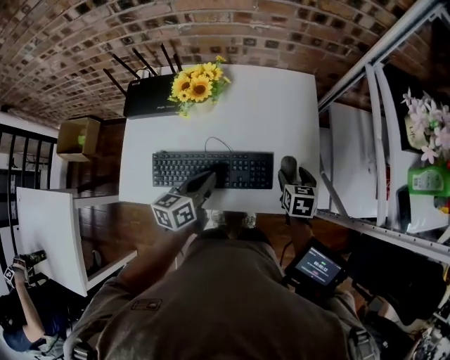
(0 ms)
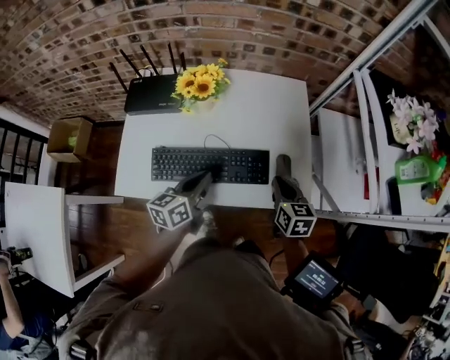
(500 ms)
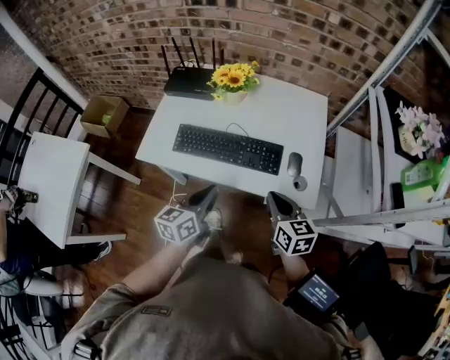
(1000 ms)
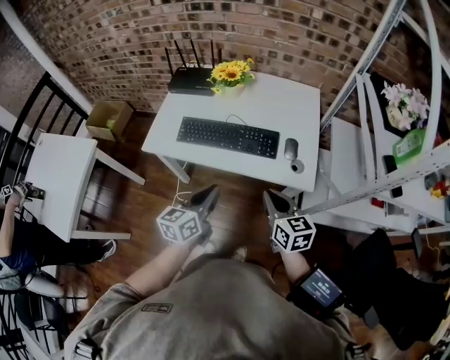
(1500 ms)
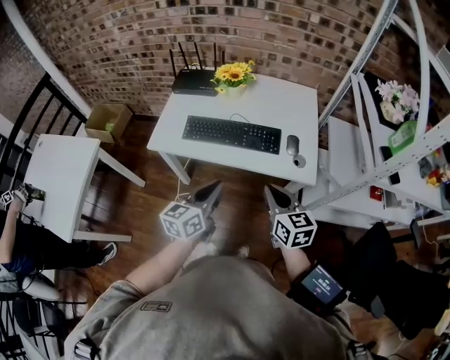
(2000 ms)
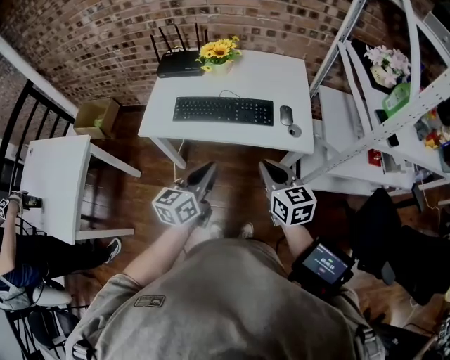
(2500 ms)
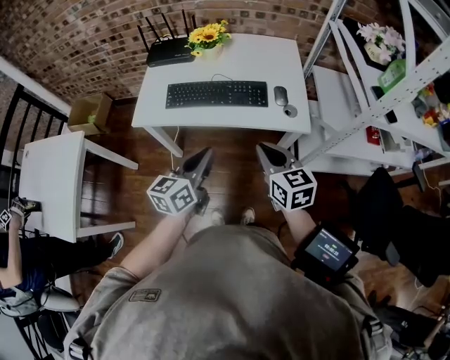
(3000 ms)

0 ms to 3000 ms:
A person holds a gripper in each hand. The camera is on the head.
0 ms to 1500 ms: The left gripper moves backward, roughly 25 cm. The right gripper heads backward and upward, covering roughly 30 cm, turns by approximately 40 degrees, and closes up.
1500 ms to 3000 ms: The left gripper moves some 5 cm. The right gripper goes some 5 cm backward.

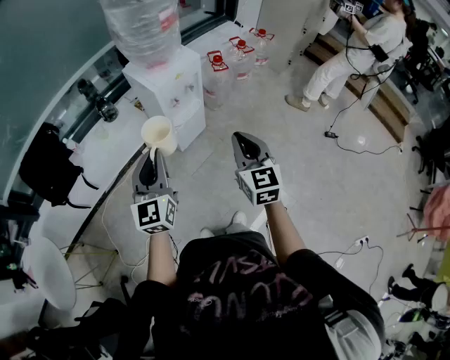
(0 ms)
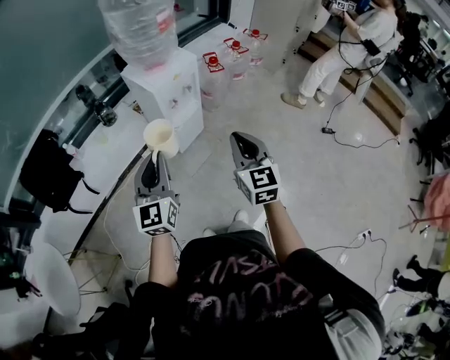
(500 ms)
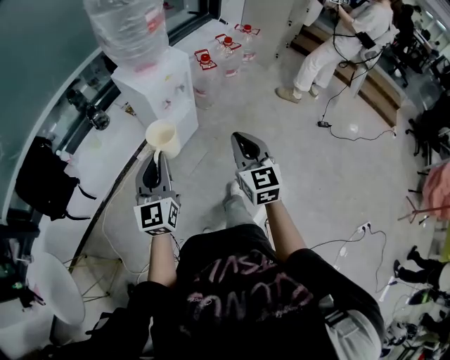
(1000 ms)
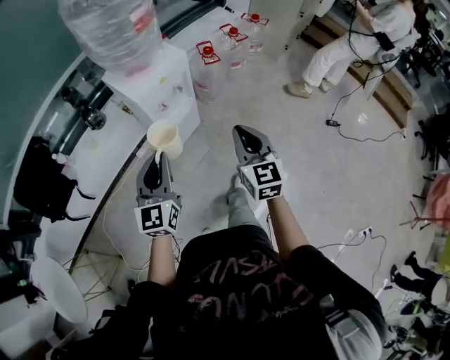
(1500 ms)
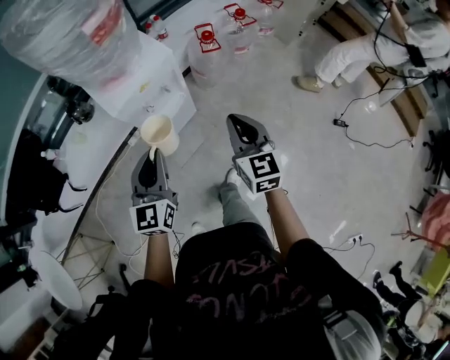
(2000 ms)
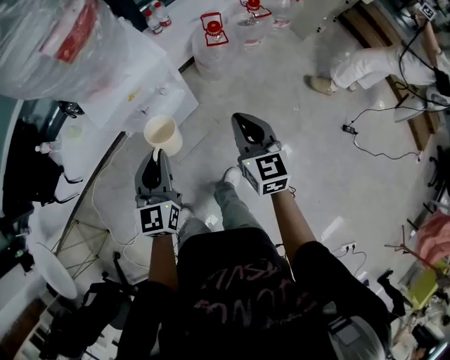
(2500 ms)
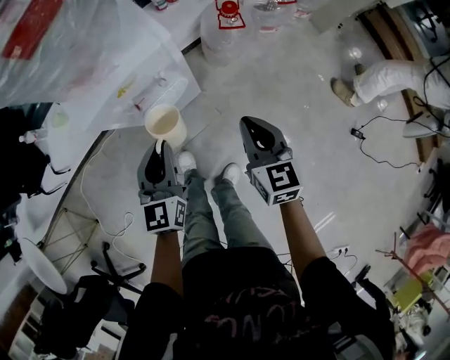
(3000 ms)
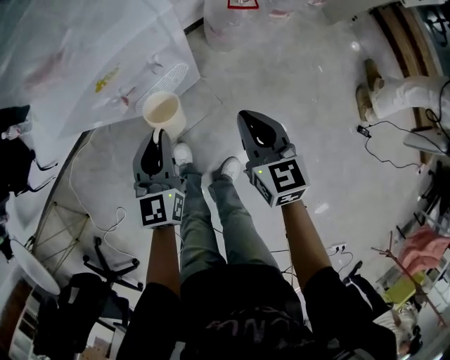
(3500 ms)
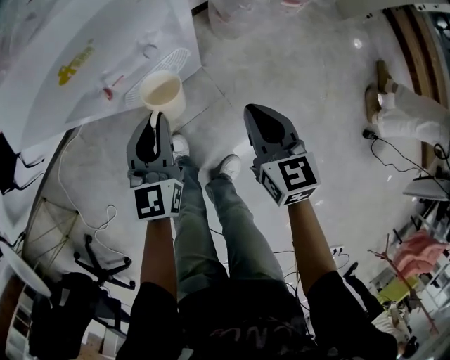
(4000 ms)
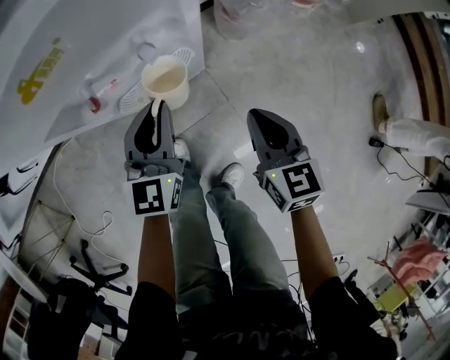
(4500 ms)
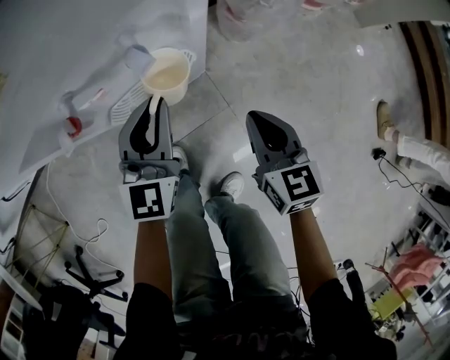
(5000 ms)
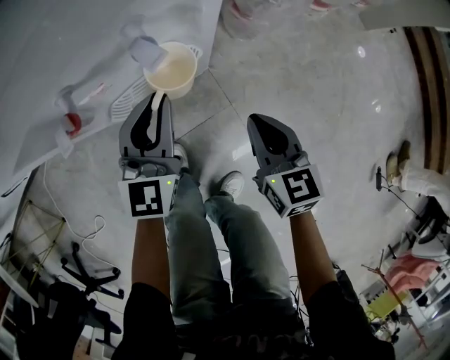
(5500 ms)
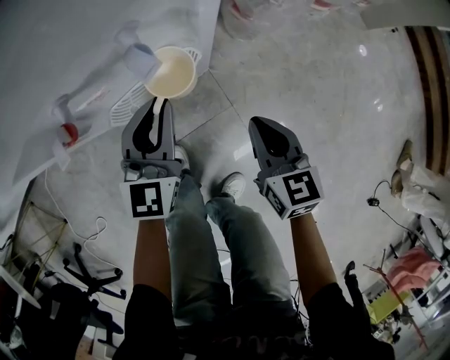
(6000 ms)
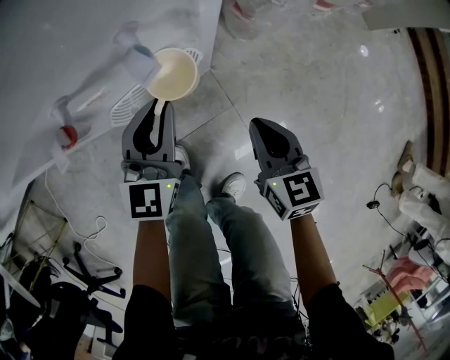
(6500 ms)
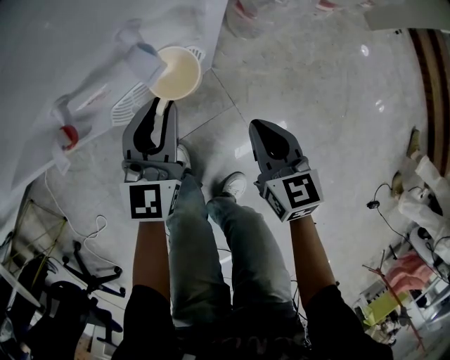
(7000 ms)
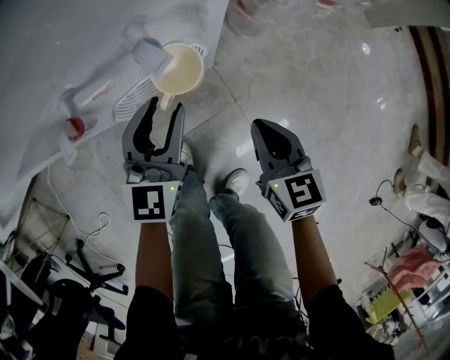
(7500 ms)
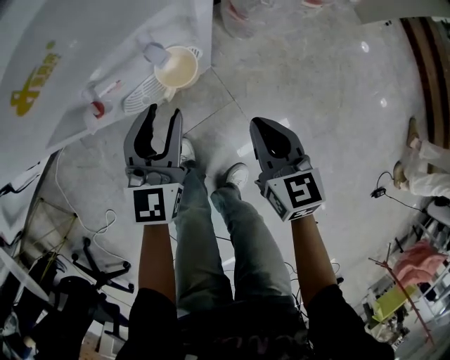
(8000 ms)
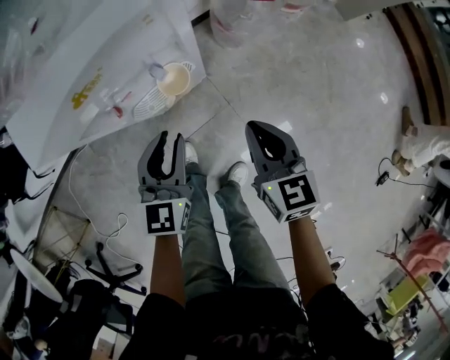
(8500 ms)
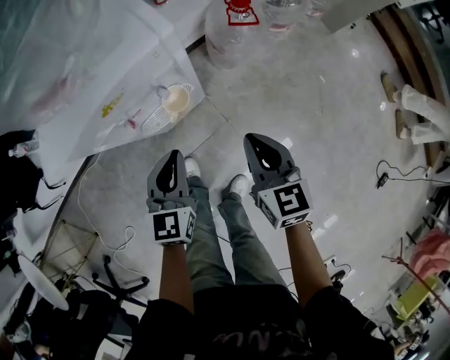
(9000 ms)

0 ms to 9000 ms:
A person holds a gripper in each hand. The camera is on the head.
0 ms to 2000 ms: The right gripper travels forward and to the right by some 30 cm. Meanwhile the left gripper goes some 25 cm forward, to the right and downward.
2000 ms to 4500 ms: The left gripper moves downward and forward, roughly 40 cm. The right gripper shifts about 40 cm downward, and rotates about 20 degrees.
4500 ms to 7000 ms: Both grippers travel together downward, approximately 10 cm.
7000 ms to 9000 ms: The left gripper is displaced upward and backward by approximately 20 cm, and opens, then closes again, while the right gripper travels upward by approximately 25 cm.

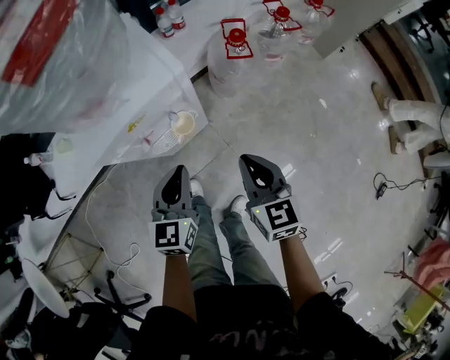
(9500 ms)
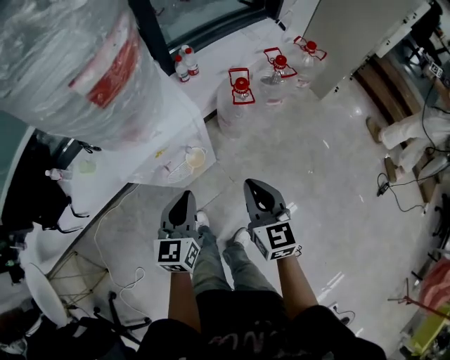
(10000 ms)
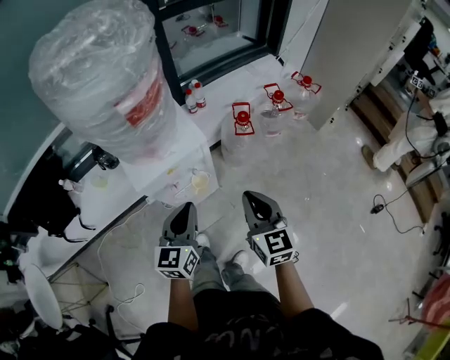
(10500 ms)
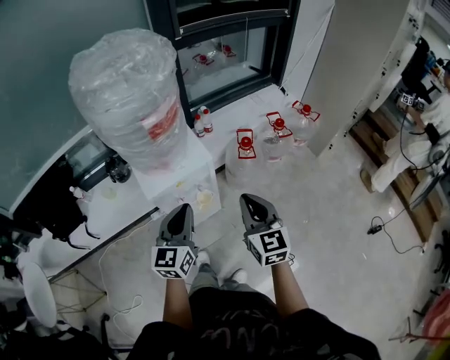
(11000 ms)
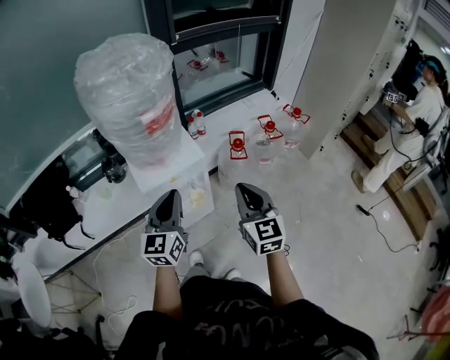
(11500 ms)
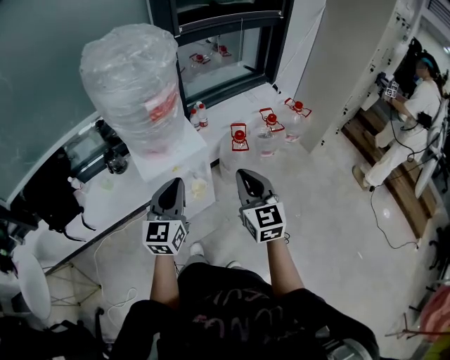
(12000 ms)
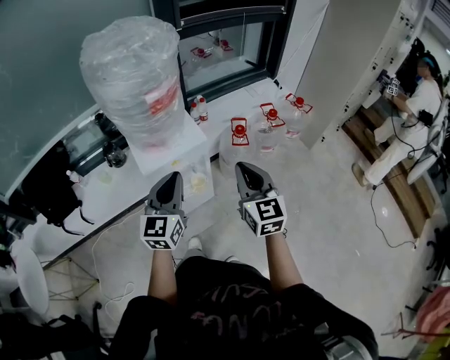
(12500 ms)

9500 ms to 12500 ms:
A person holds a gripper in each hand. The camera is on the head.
9500 ms to 11000 ms: The two grippers go some 25 cm upward.
11000 ms to 12500 ms: The left gripper ends up some 5 cm from where it was.

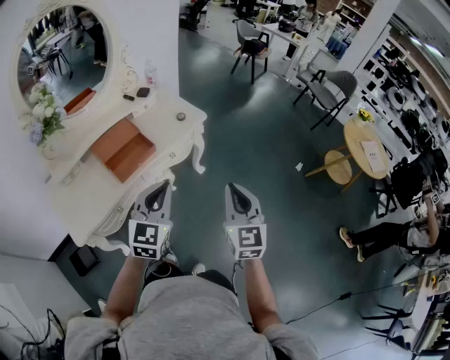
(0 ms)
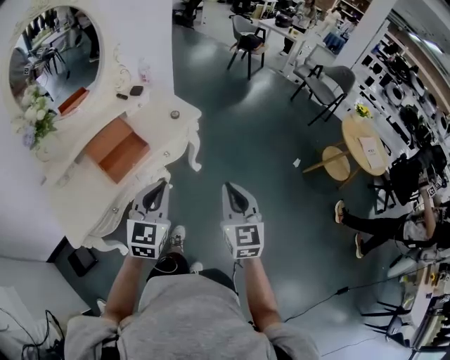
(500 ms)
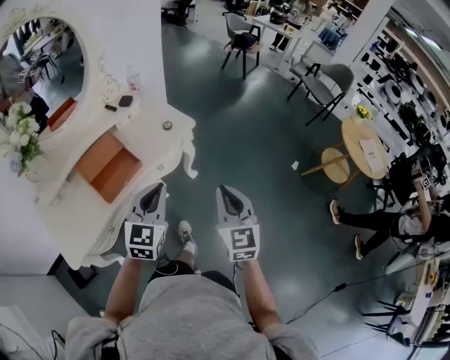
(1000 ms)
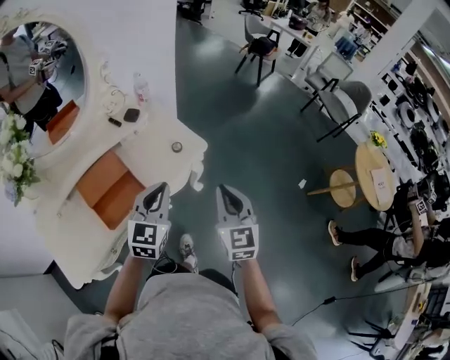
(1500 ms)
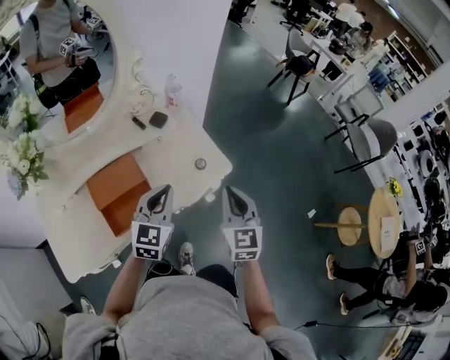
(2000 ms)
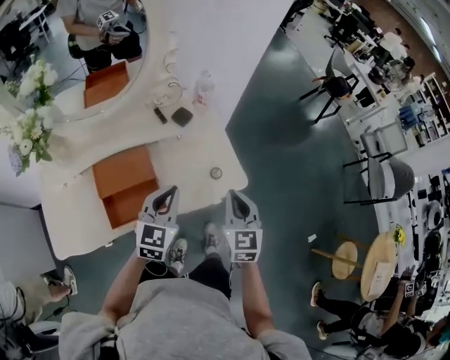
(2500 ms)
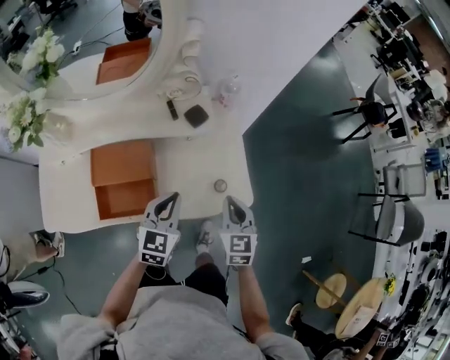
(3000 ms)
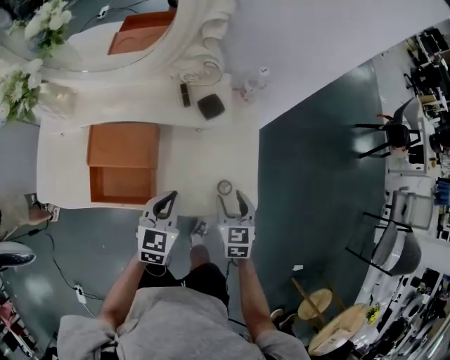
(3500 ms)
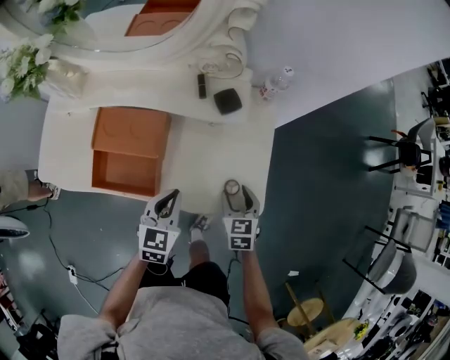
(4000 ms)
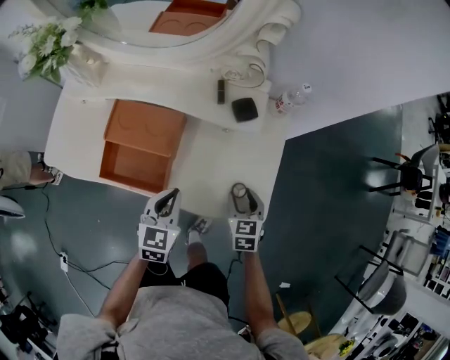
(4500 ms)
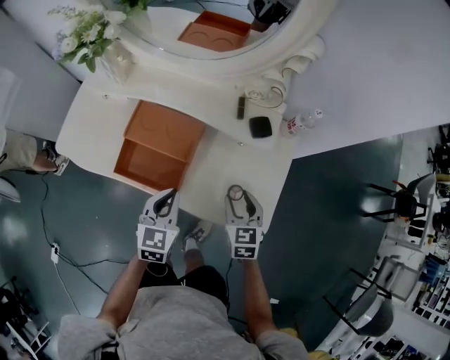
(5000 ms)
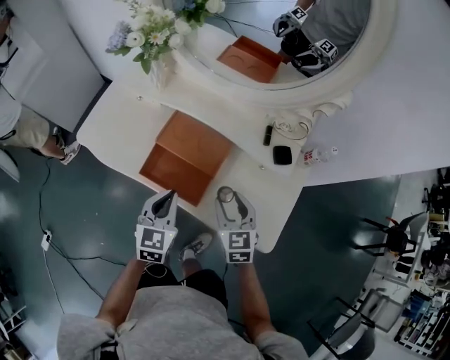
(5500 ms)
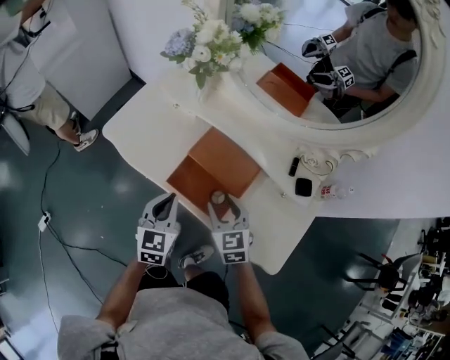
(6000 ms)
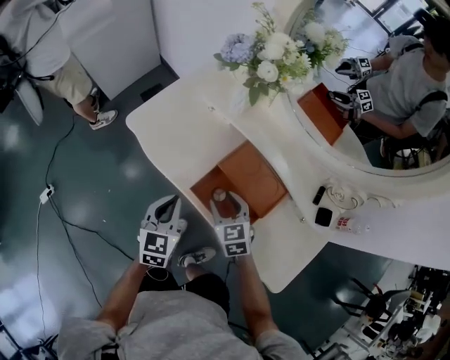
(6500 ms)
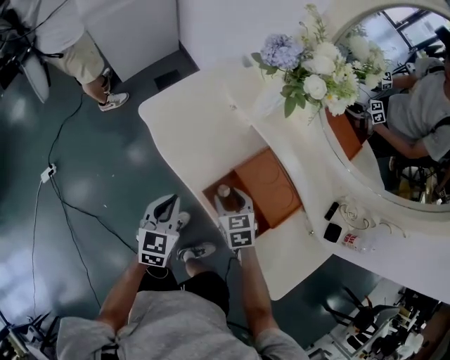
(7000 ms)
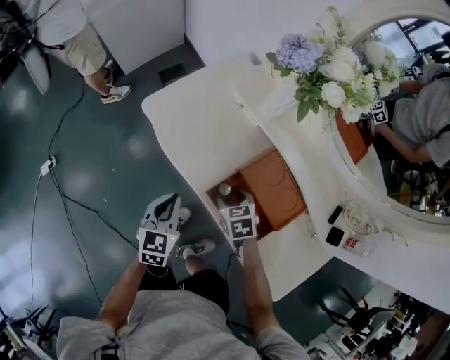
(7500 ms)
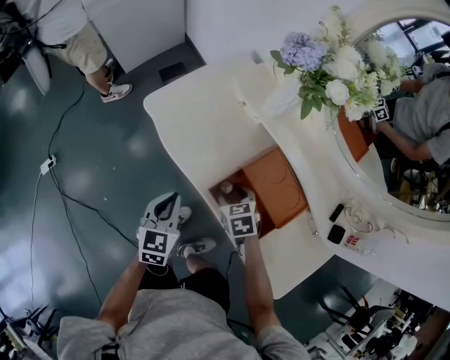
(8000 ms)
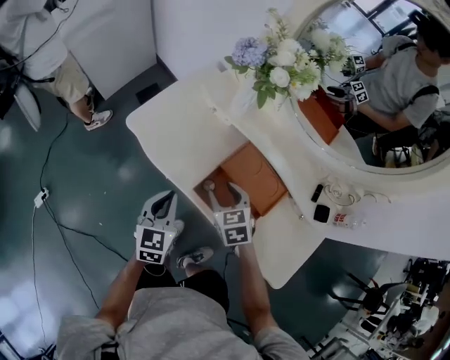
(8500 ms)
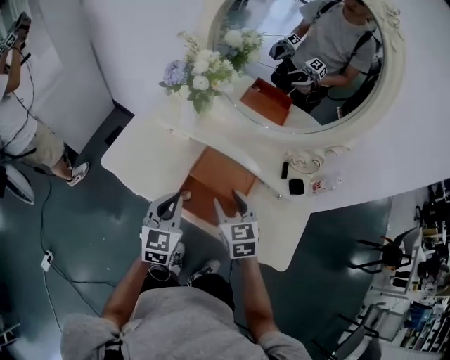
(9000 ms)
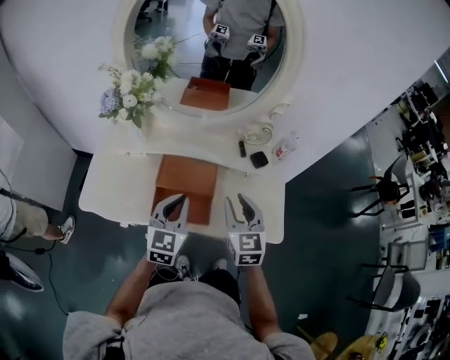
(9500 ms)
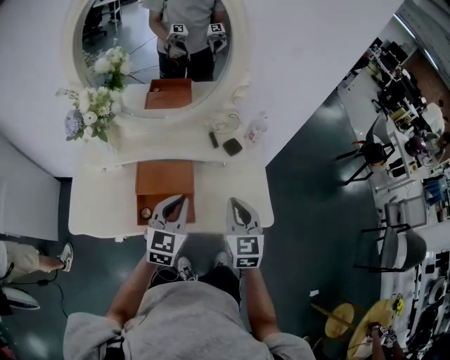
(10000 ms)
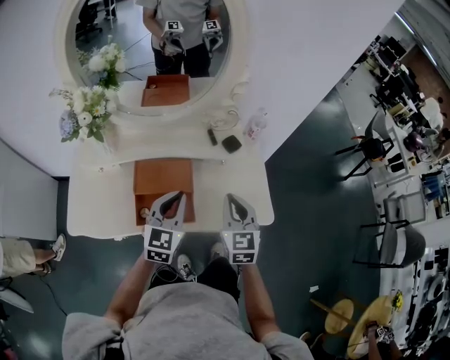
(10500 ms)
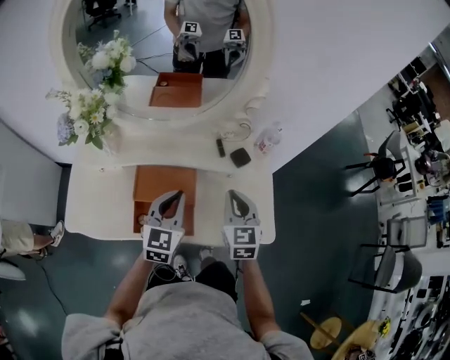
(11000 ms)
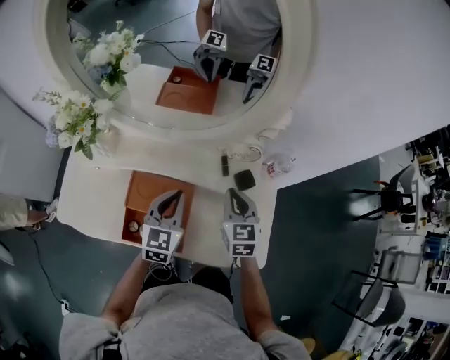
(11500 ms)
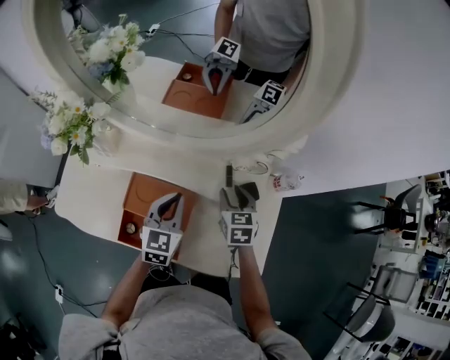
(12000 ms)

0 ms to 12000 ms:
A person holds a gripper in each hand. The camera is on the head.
0 ms to 2000 ms: The grippers both shift forward by about 35 cm.
2000 ms to 4000 ms: Both grippers travel together downward, roughly 25 cm. The right gripper swivels about 50 degrees, and opens up; the left gripper turns by roughly 40 degrees.
4000 ms to 6000 ms: The left gripper shifts by some 25 cm, and swivels roughly 40 degrees; the right gripper moves about 35 cm, and rotates some 40 degrees.
6000 ms to 8000 ms: The left gripper shifts approximately 15 cm to the left and downward. Meanwhile the right gripper is displaced downward, forward and to the left by approximately 20 cm, and turns by roughly 30 degrees.
8000 ms to 10000 ms: The right gripper shifts by approximately 40 cm, points its fingers some 40 degrees further upward, and closes up; the left gripper shifts by about 35 cm, and turns by about 60 degrees.
10000 ms to 12000 ms: The left gripper shifts roughly 20 cm forward and downward, and changes its angle by roughly 20 degrees; the right gripper shifts about 30 cm forward and downward, changes its angle by approximately 30 degrees, and opens.
